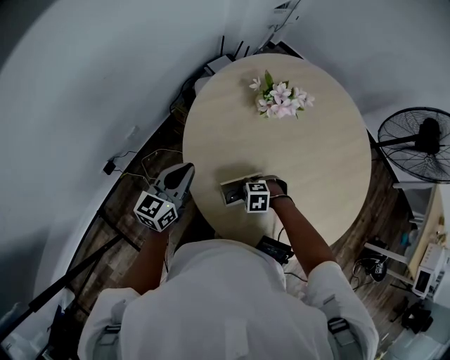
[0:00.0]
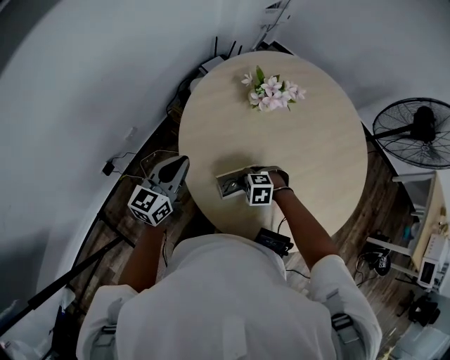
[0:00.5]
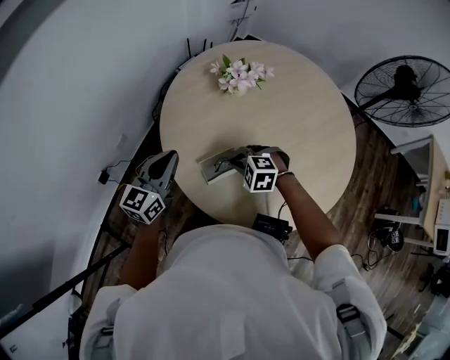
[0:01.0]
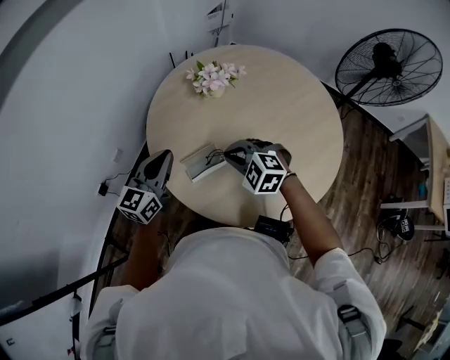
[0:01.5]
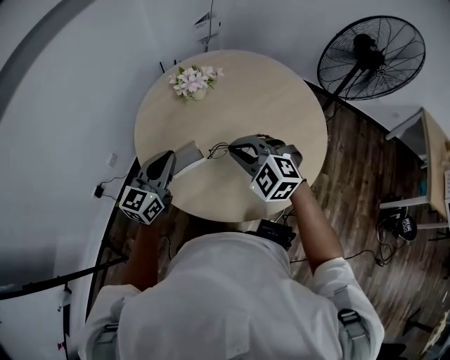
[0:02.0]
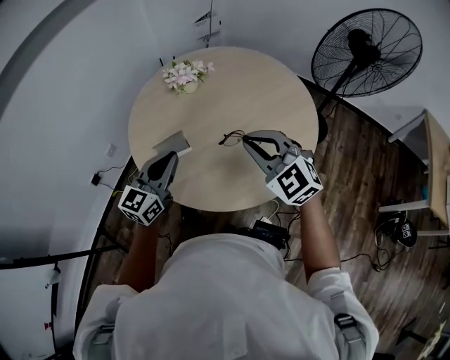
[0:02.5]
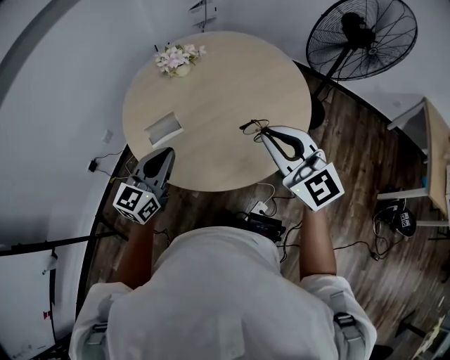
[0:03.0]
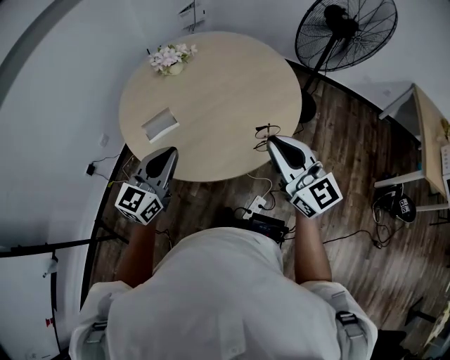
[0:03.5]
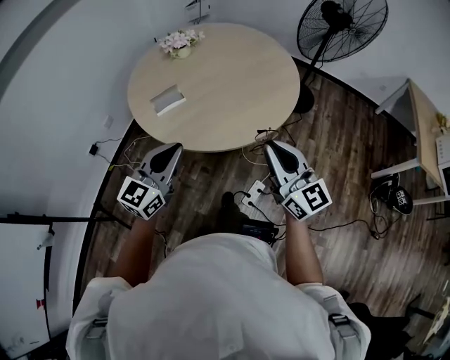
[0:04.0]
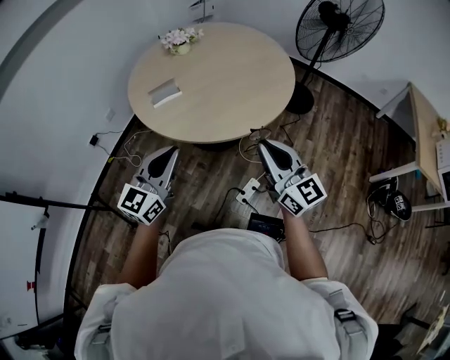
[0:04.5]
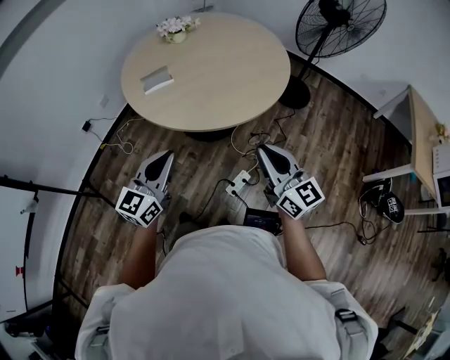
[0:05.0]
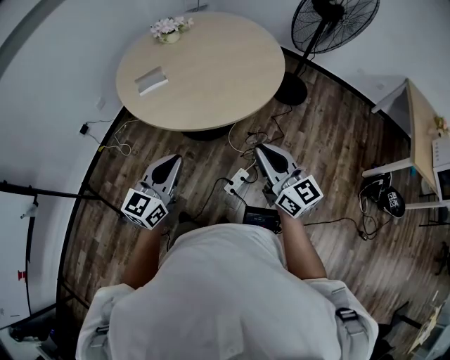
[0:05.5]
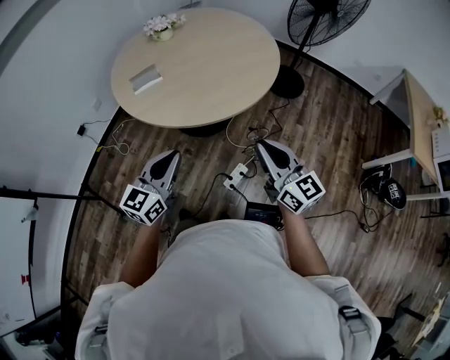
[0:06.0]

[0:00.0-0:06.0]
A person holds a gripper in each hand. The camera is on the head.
0:00.0 to 0:02.0: The left gripper moves about 30 cm; the right gripper is displaced upward by roughly 35 cm, and tips its fingers upward by approximately 40 degrees.
0:02.0 to 0:04.0: The left gripper heads backward, covering approximately 30 cm. The right gripper moves backward and to the right, about 40 cm, and tips its fingers upward by approximately 40 degrees.
0:04.0 to 0:06.0: Both grippers move to the right, backward and downward, some 15 cm.

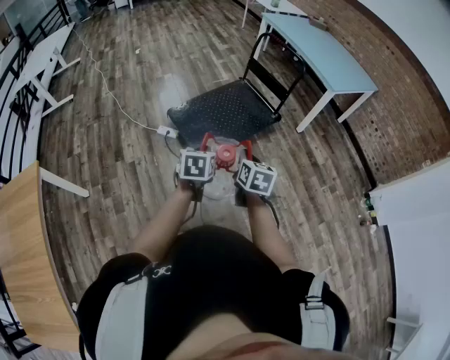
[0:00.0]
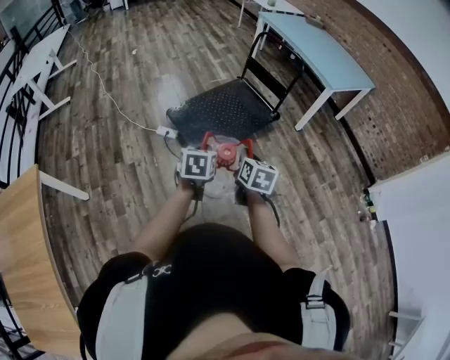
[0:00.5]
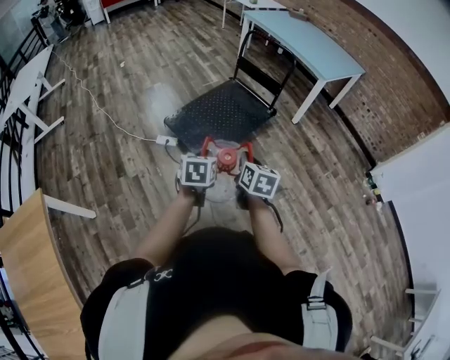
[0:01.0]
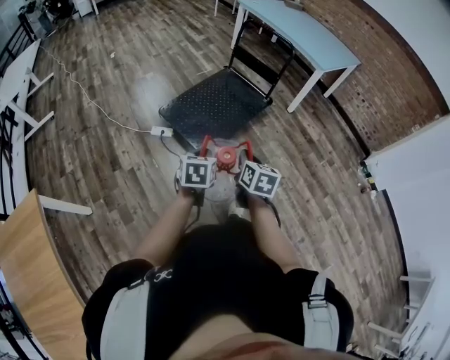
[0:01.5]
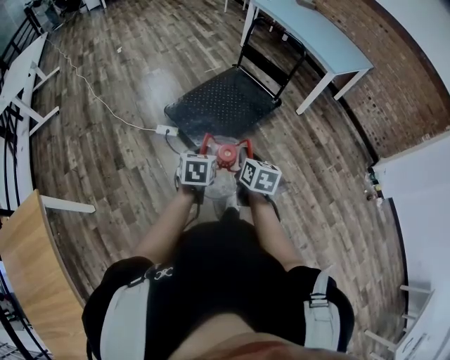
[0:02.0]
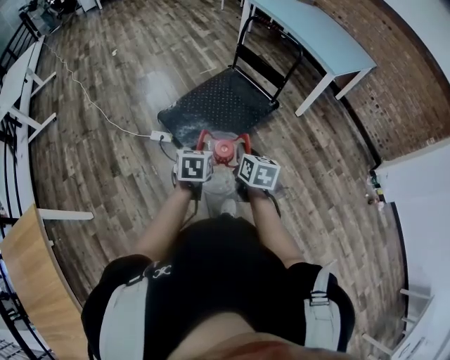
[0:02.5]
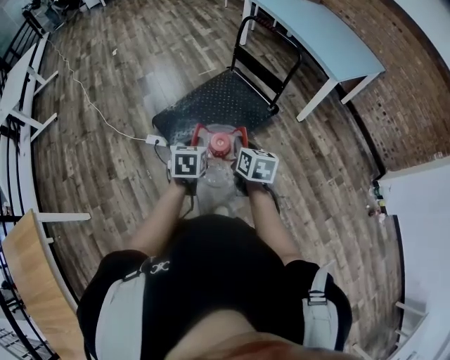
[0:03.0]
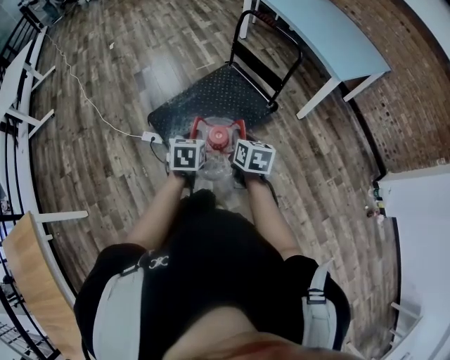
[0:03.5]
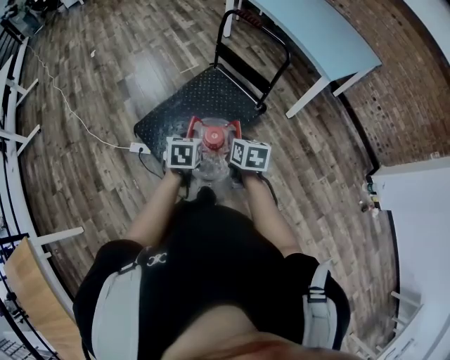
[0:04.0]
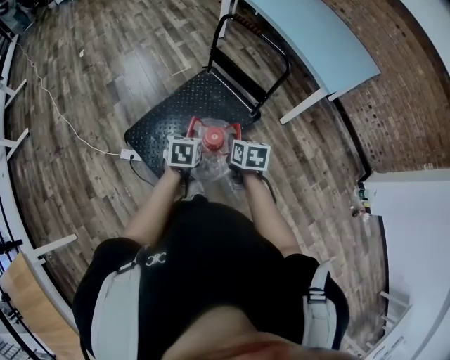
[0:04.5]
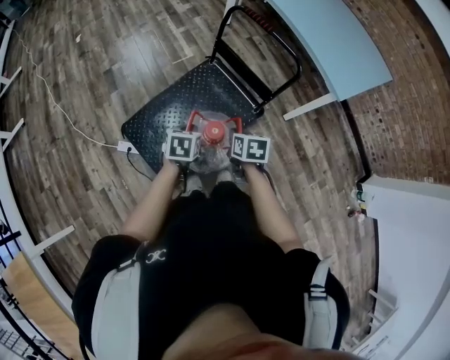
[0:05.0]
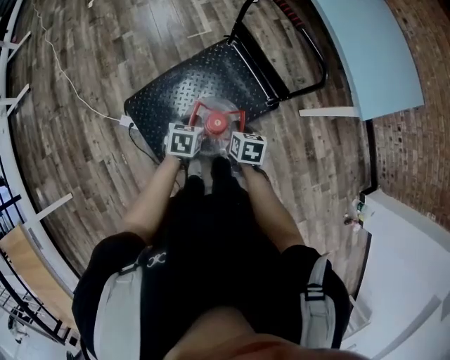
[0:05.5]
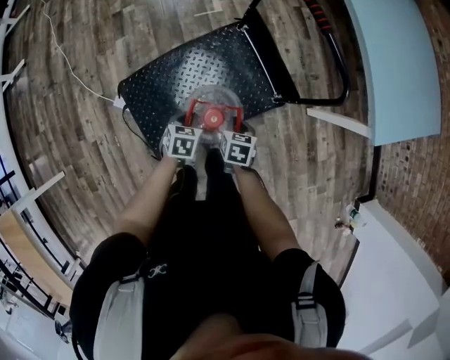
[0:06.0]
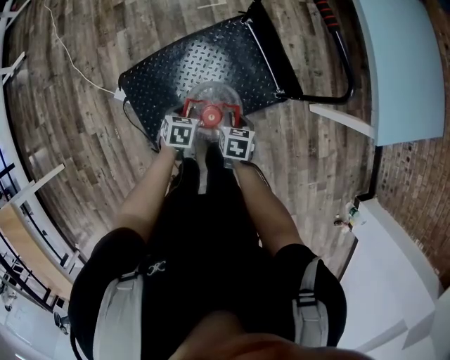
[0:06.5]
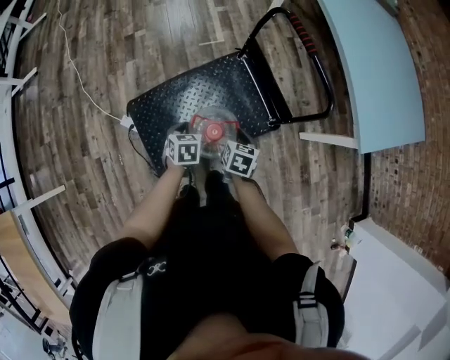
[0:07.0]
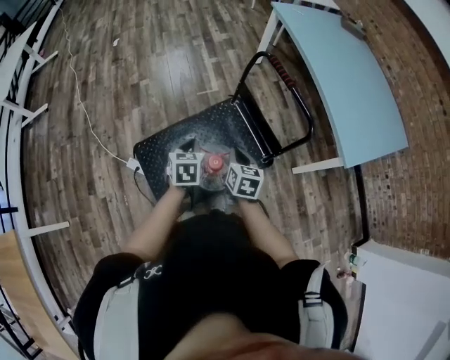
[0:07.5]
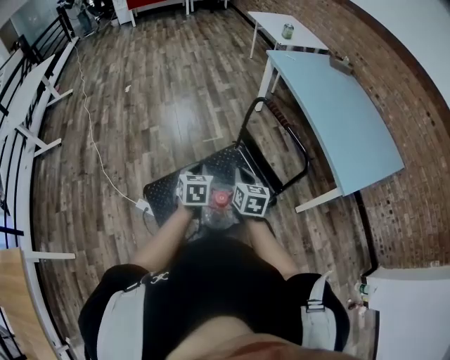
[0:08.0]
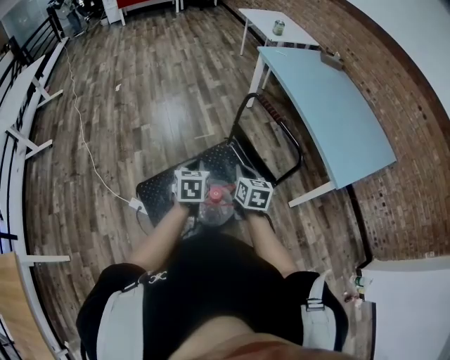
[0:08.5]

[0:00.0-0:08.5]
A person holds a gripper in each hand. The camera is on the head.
0:00.0 to 0:02.0: The grippers both shift to the left by roughly 10 cm.
0:02.0 to 0:04.0: Both grippers move forward and to the right, about 35 cm.
0:04.0 to 0:06.5: The grippers both shift downward and forward by about 35 cm. The left gripper changes its angle by roughly 20 degrees. Meanwhile the right gripper swivels about 30 degrees.
0:06.5 to 0:08.5: The two grippers go some 30 cm upward. The left gripper swivels about 30 degrees; the right gripper tips its fingers upward by about 30 degrees.

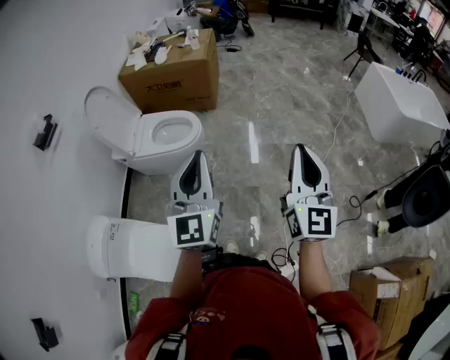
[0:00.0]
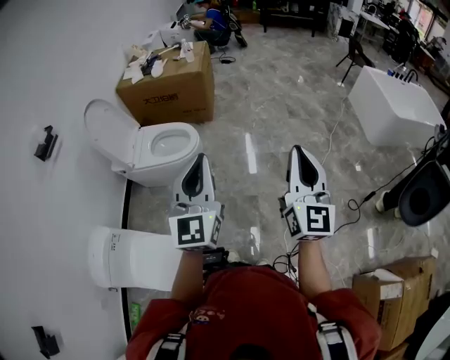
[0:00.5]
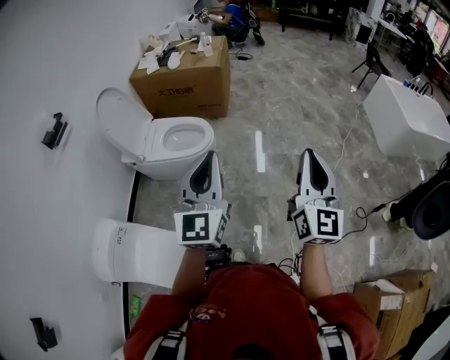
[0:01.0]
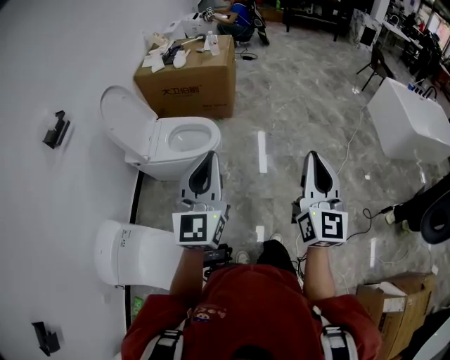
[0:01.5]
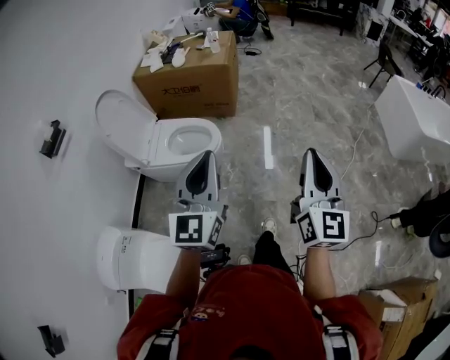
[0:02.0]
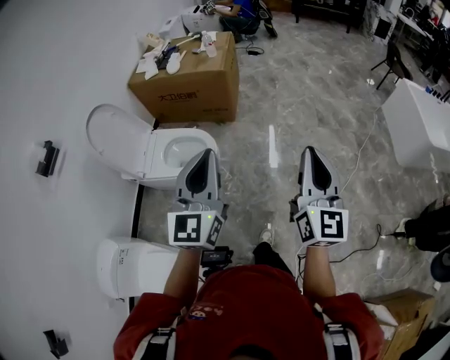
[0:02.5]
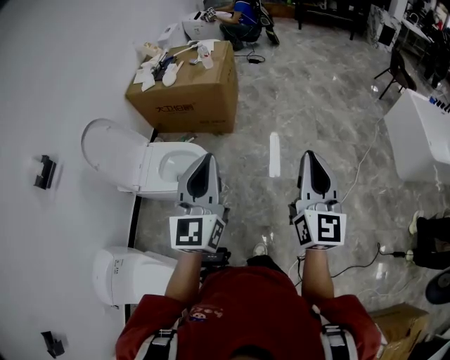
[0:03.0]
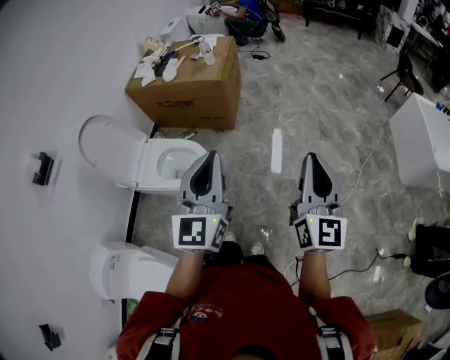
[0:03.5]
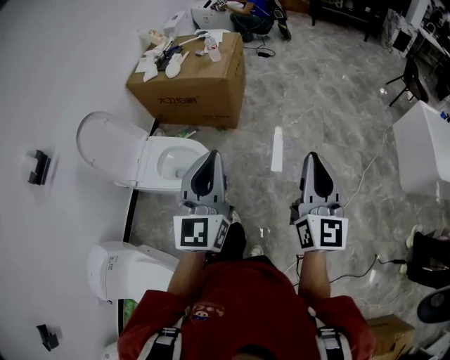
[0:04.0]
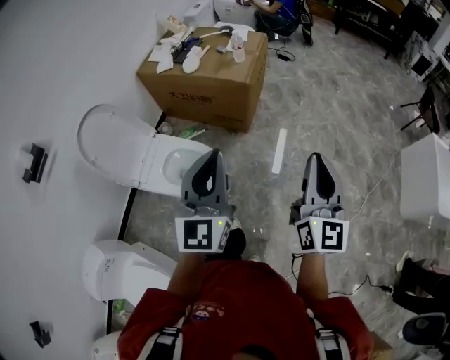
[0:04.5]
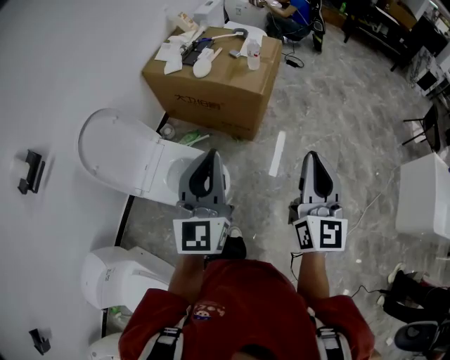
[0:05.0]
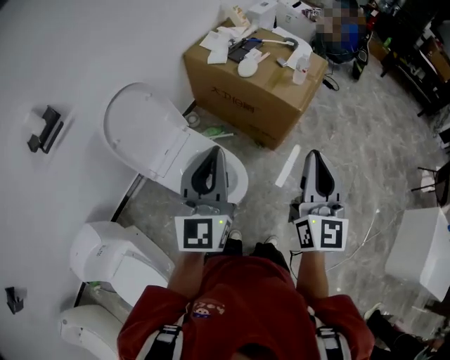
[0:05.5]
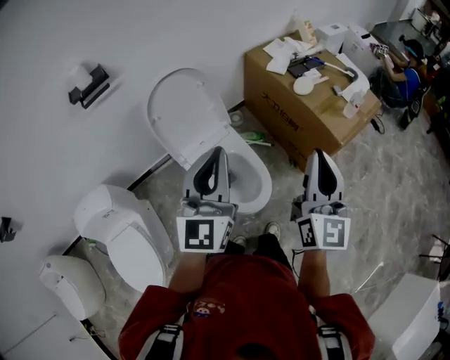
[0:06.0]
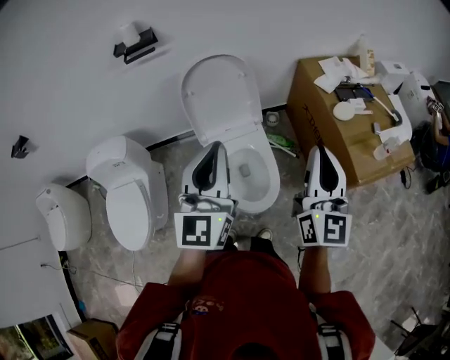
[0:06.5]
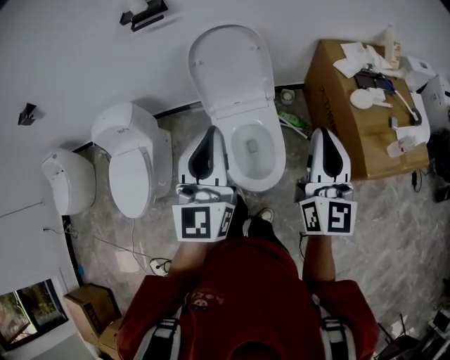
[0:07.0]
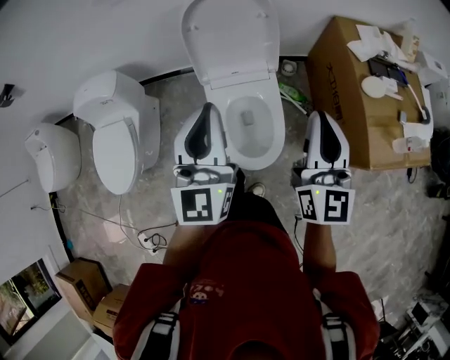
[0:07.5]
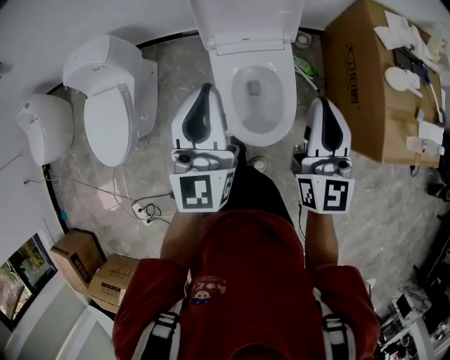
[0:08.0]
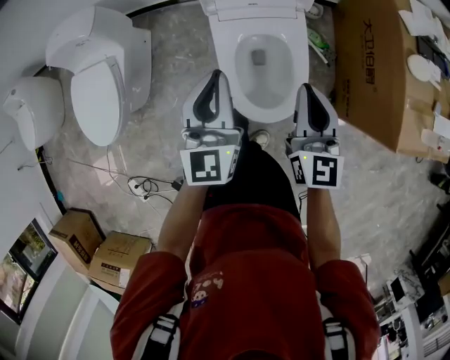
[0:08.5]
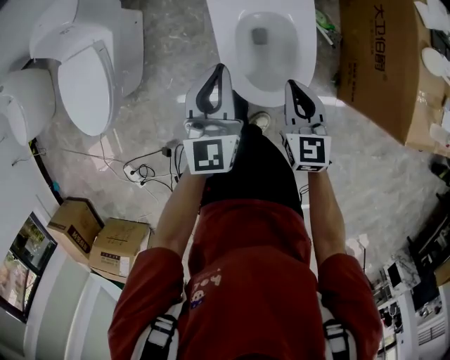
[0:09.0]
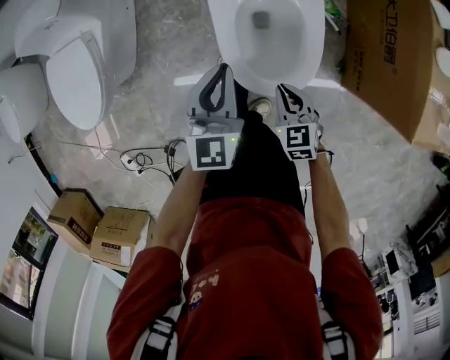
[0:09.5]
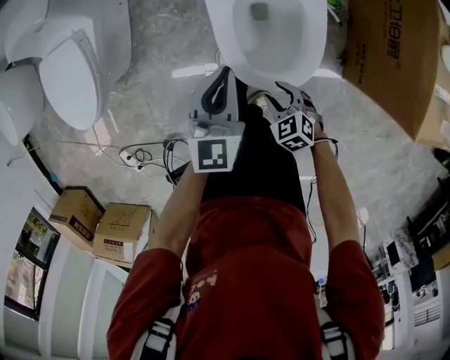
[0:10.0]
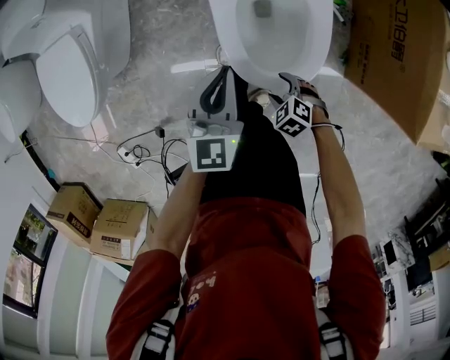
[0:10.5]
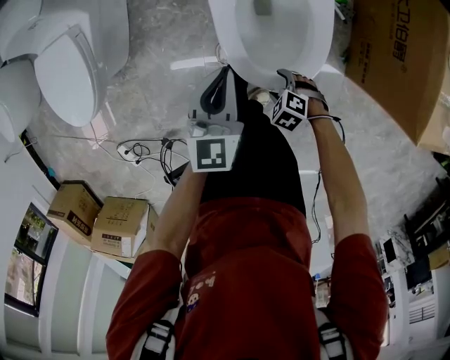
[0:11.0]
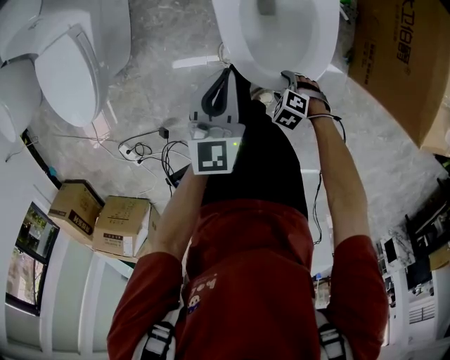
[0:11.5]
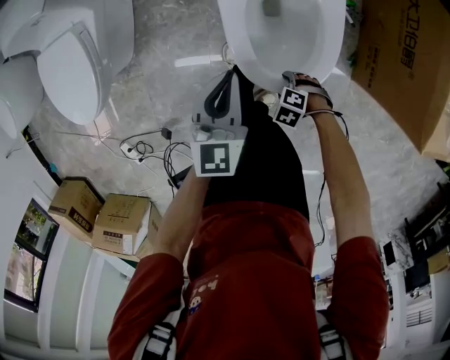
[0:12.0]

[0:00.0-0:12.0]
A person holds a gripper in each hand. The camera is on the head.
0:00.0 to 0:02.0: The two grippers go approximately 10 cm forward and to the left.
0:02.0 to 0:04.0: The left gripper is displaced forward and to the right by some 30 cm, while the right gripper travels forward by about 30 cm.
0:04.0 to 0:06.0: The right gripper shifts by roughly 50 cm, and turns by approximately 40 degrees. The left gripper moves approximately 40 cm, and swivels some 40 degrees.
0:06.0 to 0:08.0: The right gripper changes place by some 20 cm, and changes its angle by some 40 degrees. Meanwhile the left gripper moves downward, roughly 15 cm, and swivels some 40 degrees.
0:08.0 to 0:10.0: The left gripper is displaced downward by about 30 cm, and swivels some 30 degrees. The right gripper goes some 50 cm downward, tips its fingers downward by approximately 60 degrees, and opens.
0:10.0 to 0:12.0: The right gripper travels downward by some 10 cm, turns by about 40 degrees, and opens its fingers.
